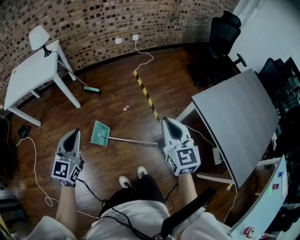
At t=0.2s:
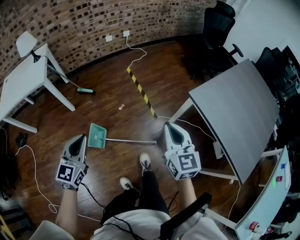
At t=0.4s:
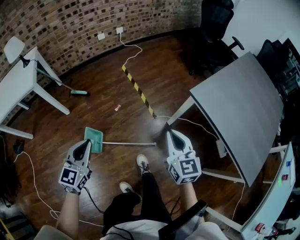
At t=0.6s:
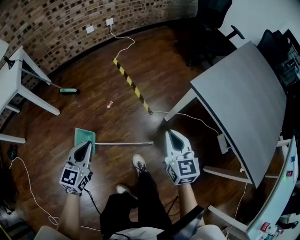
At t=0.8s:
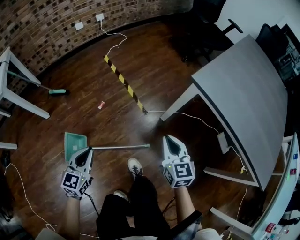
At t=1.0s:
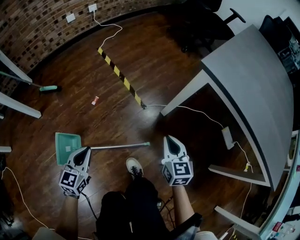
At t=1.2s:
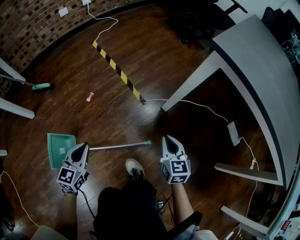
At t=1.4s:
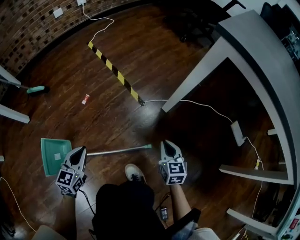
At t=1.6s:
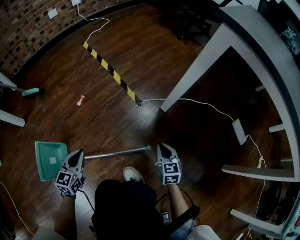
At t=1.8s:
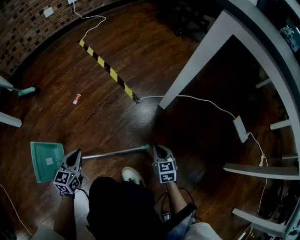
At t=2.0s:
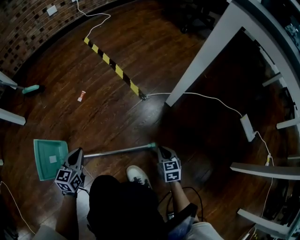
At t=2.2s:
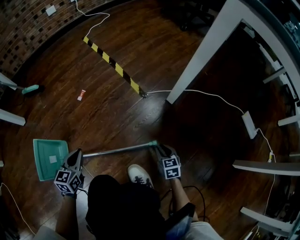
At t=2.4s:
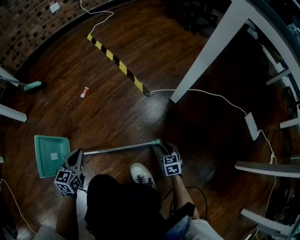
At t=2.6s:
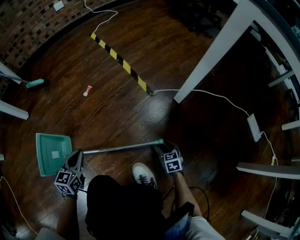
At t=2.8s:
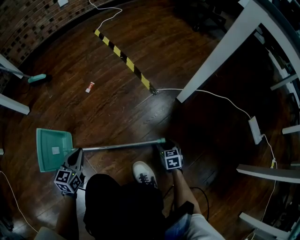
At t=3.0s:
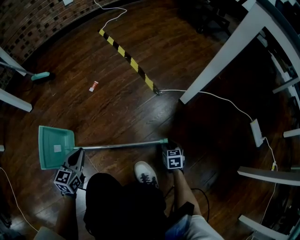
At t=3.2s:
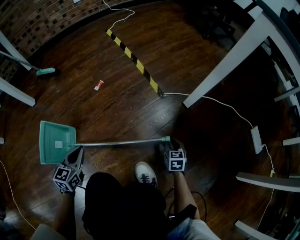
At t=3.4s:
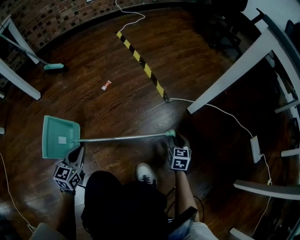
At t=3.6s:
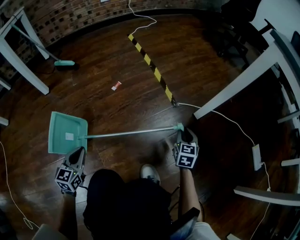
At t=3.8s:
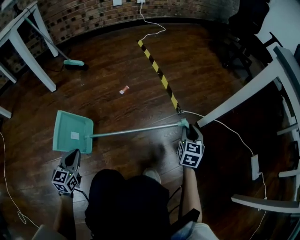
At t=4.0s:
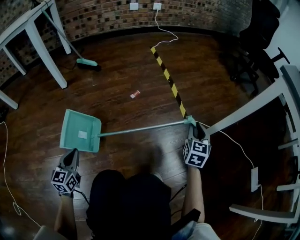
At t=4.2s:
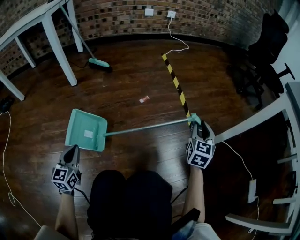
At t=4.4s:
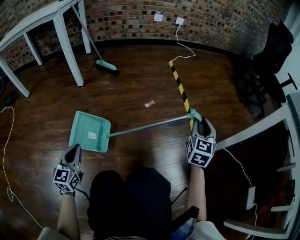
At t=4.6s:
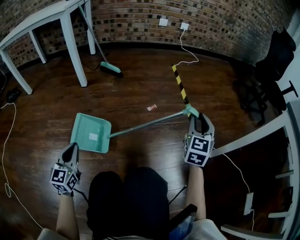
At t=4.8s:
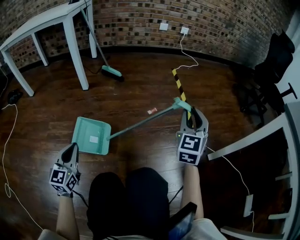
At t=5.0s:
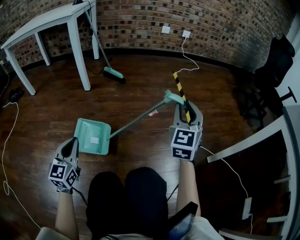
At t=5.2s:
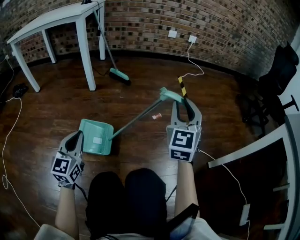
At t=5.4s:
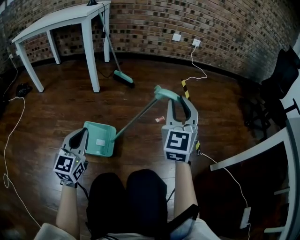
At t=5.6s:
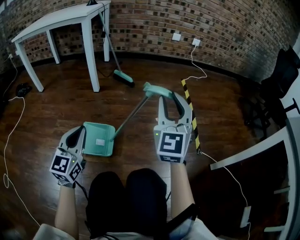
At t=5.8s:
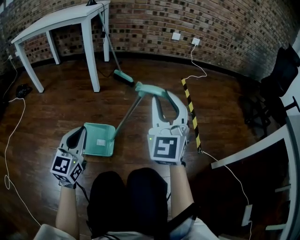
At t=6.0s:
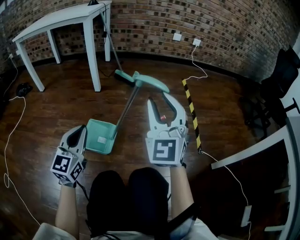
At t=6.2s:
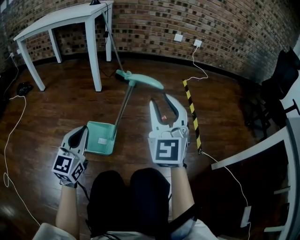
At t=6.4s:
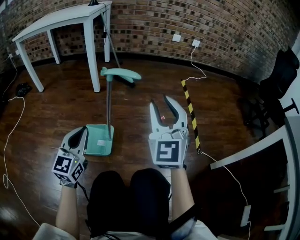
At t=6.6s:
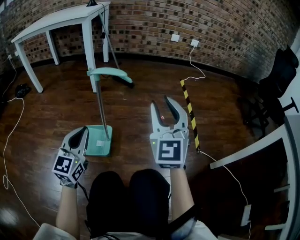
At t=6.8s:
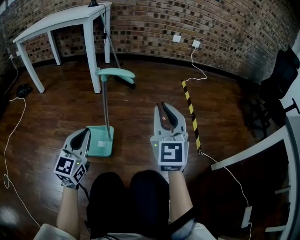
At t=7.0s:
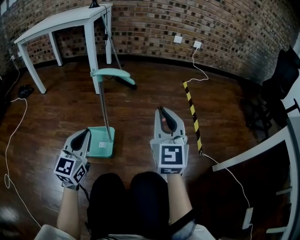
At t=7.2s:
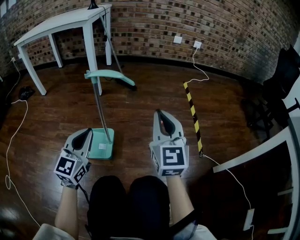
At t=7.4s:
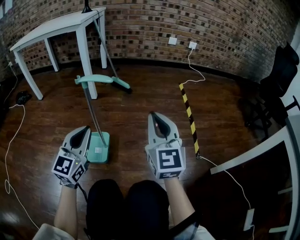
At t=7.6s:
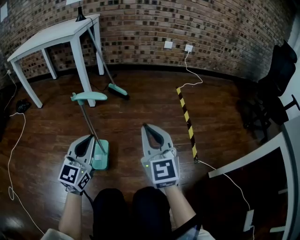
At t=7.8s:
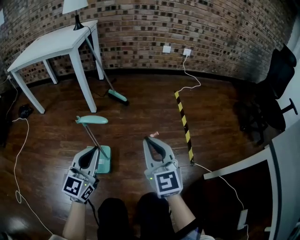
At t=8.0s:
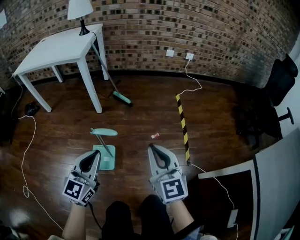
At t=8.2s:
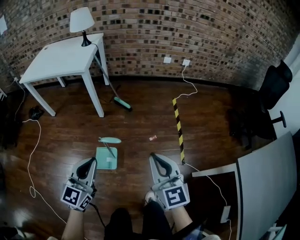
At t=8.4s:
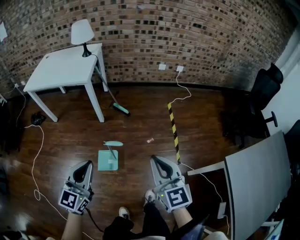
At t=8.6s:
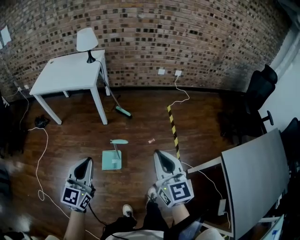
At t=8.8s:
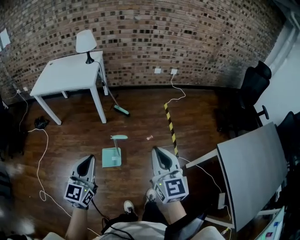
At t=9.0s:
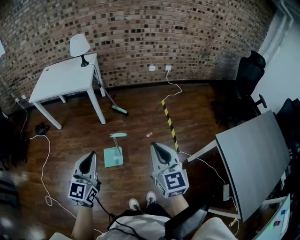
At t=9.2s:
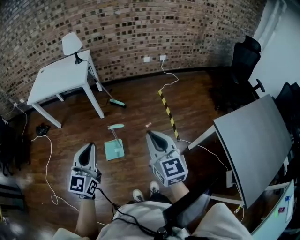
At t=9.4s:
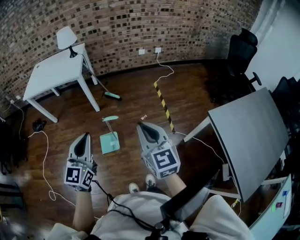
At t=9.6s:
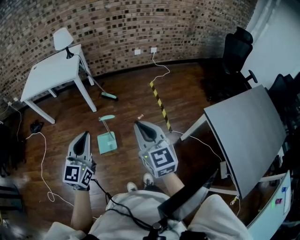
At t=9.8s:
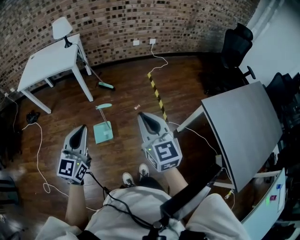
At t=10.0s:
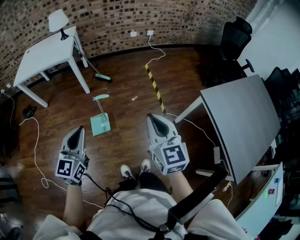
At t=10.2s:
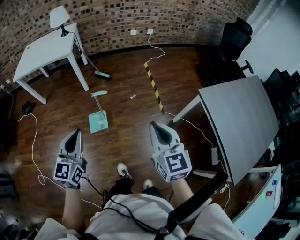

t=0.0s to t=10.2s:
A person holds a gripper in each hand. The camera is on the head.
t=0.0s to t=1.4s: Both grippers travel together downward, some 70 cm. The left gripper changes its angle by about 30 degrees; the right gripper changes its angle by about 40 degrees.
t=1.4s to t=3.0s: The left gripper heads downward, to the left and backward, covering some 15 cm; the right gripper heads downward, covering about 30 cm, turns by some 20 degrees, and opens, then closes once more.
t=3.0s to t=4.4s: The right gripper goes some 50 cm upward, forward and to the left, and tips its fingers upward by about 40 degrees. Meanwhile the left gripper goes some 25 cm to the left, backward and upward, and rotates roughly 40 degrees.
t=4.4s to t=5.8s: The left gripper travels upward by approximately 15 cm. The right gripper travels to the left and upward by approximately 35 cm, and rotates about 40 degrees.
t=5.8s to t=7.2s: The right gripper goes approximately 5 cm downward, swivels some 20 degrees, and closes its fingers.
t=7.2s to t=8.8s: Both grippers travel together upward, roughly 50 cm.
t=8.8s to t=10.2s: The left gripper travels backward by some 10 cm. The right gripper goes some 20 cm backward and to the right.

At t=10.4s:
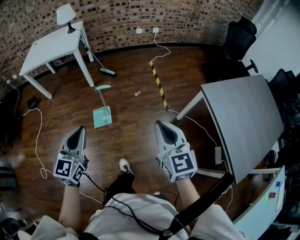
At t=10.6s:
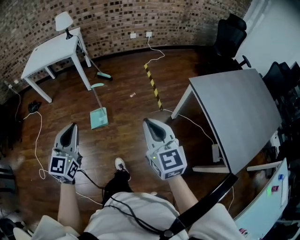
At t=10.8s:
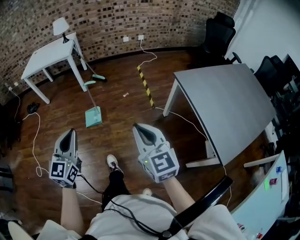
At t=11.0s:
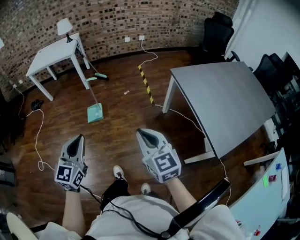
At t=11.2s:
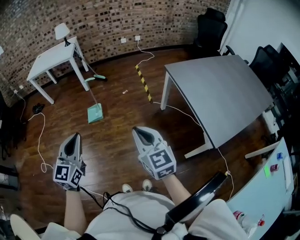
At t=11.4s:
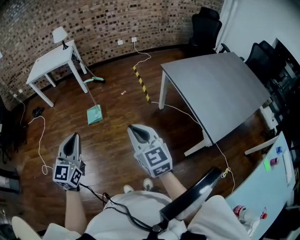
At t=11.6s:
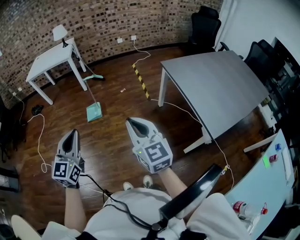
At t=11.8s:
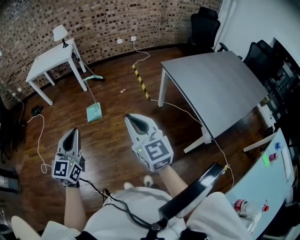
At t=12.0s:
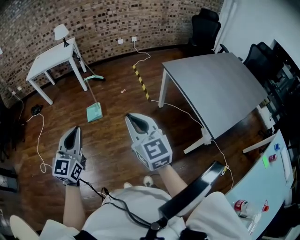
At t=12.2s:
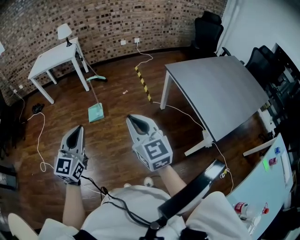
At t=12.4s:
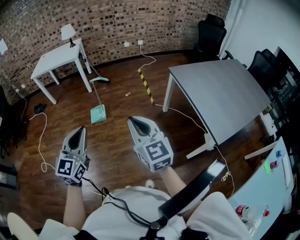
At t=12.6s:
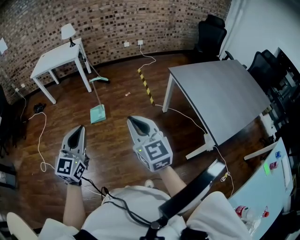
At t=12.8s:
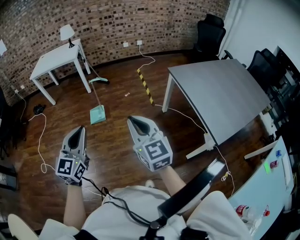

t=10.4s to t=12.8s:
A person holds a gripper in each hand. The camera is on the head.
t=10.4s to t=11.6s: The two grippers go some 35 cm backward.
t=11.6s to t=12.8s: The right gripper shifts by some 5 cm.

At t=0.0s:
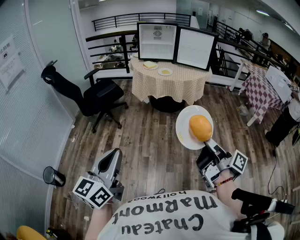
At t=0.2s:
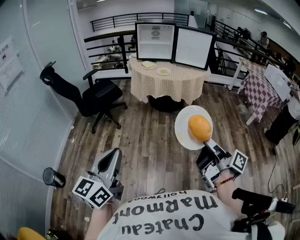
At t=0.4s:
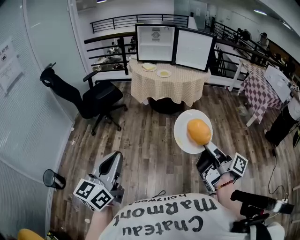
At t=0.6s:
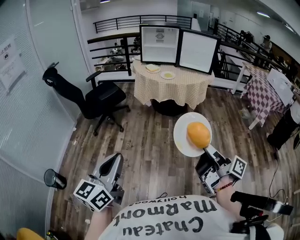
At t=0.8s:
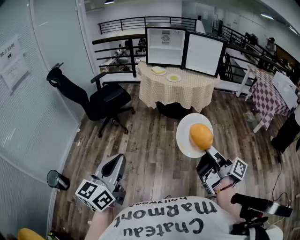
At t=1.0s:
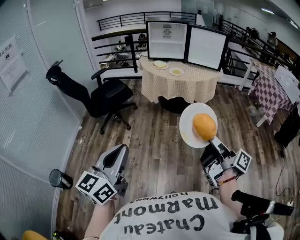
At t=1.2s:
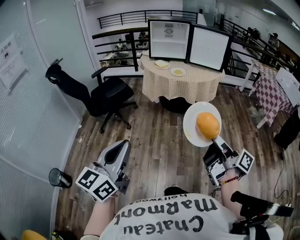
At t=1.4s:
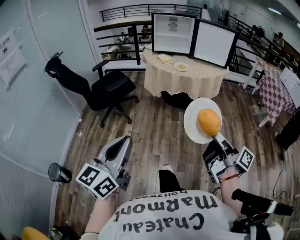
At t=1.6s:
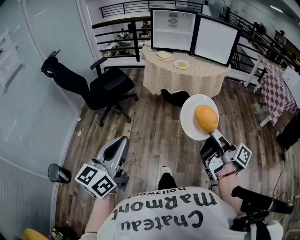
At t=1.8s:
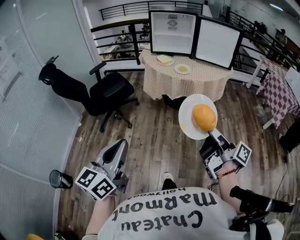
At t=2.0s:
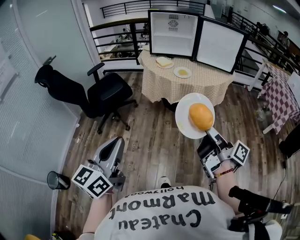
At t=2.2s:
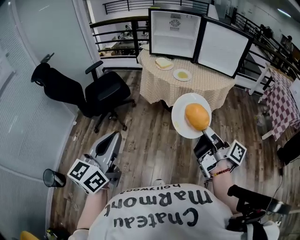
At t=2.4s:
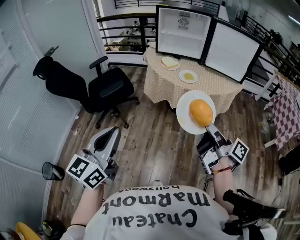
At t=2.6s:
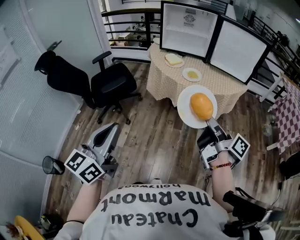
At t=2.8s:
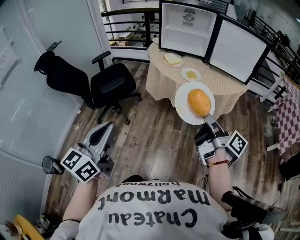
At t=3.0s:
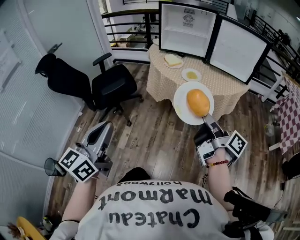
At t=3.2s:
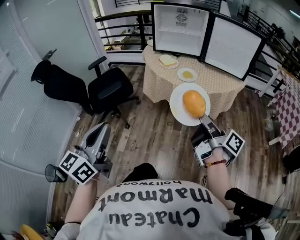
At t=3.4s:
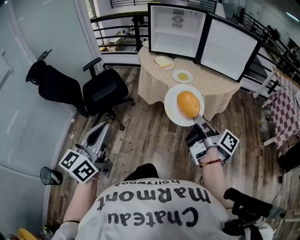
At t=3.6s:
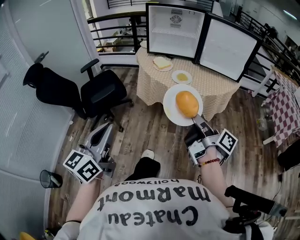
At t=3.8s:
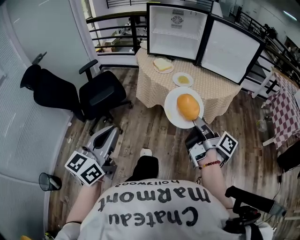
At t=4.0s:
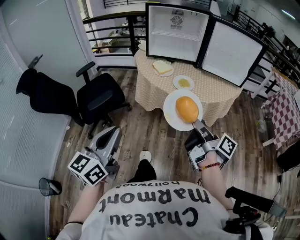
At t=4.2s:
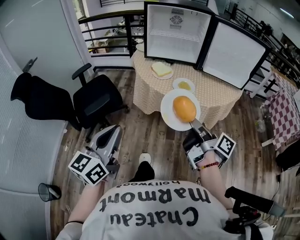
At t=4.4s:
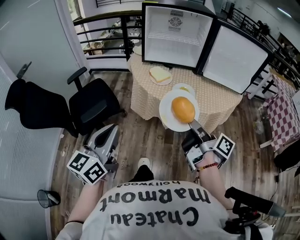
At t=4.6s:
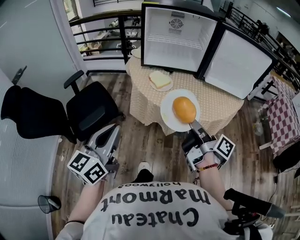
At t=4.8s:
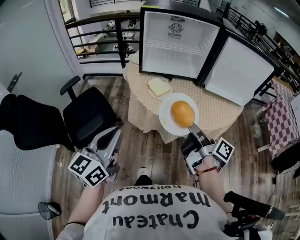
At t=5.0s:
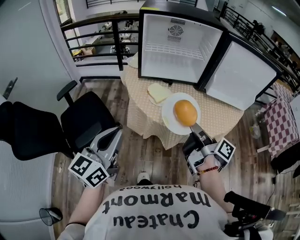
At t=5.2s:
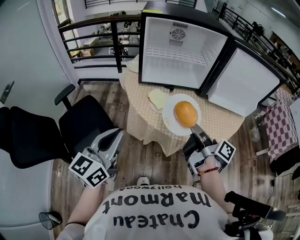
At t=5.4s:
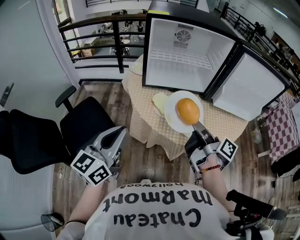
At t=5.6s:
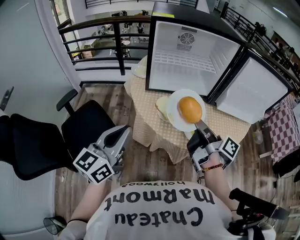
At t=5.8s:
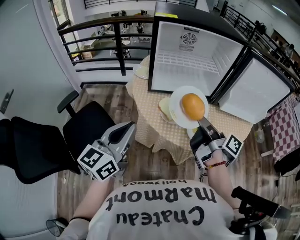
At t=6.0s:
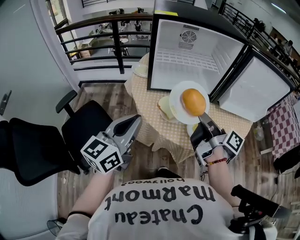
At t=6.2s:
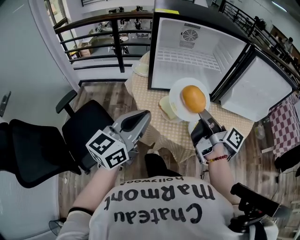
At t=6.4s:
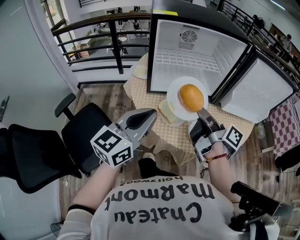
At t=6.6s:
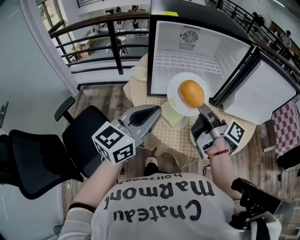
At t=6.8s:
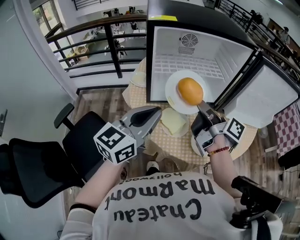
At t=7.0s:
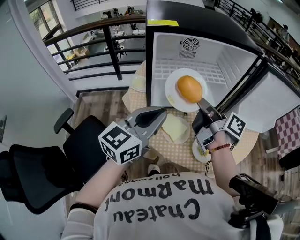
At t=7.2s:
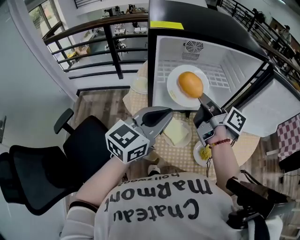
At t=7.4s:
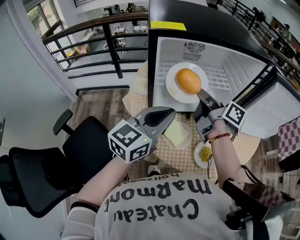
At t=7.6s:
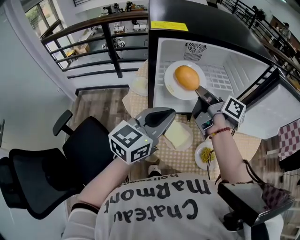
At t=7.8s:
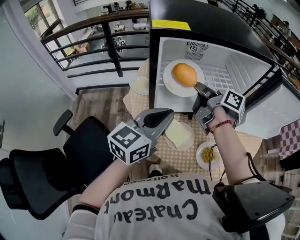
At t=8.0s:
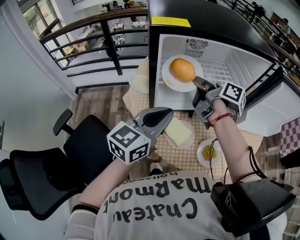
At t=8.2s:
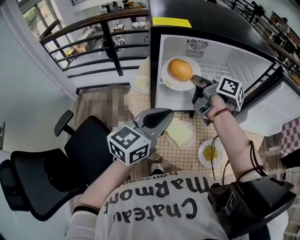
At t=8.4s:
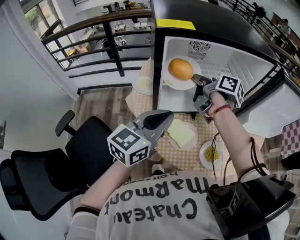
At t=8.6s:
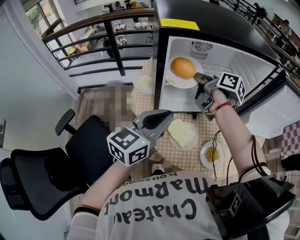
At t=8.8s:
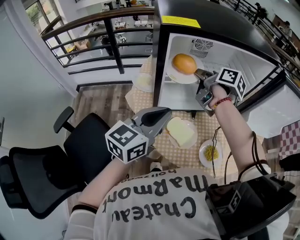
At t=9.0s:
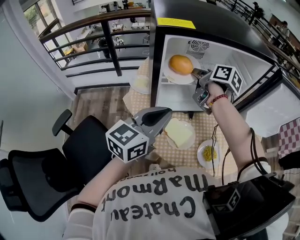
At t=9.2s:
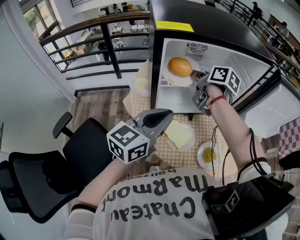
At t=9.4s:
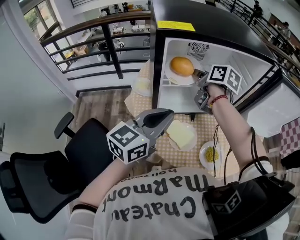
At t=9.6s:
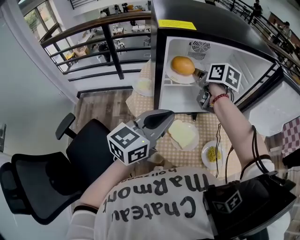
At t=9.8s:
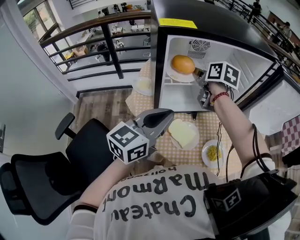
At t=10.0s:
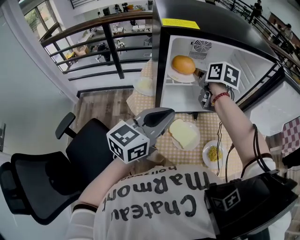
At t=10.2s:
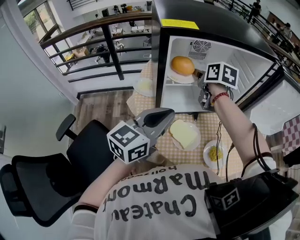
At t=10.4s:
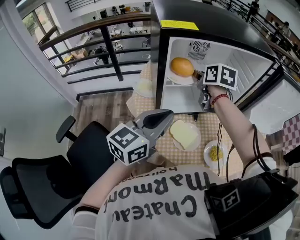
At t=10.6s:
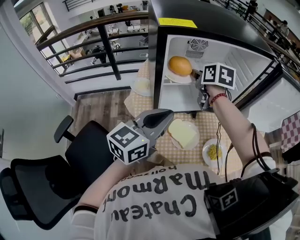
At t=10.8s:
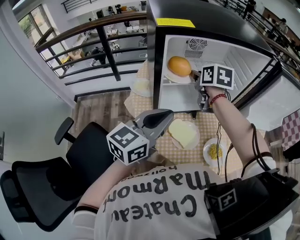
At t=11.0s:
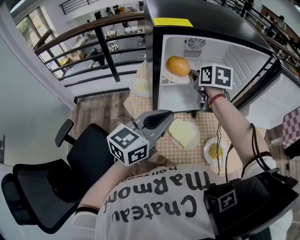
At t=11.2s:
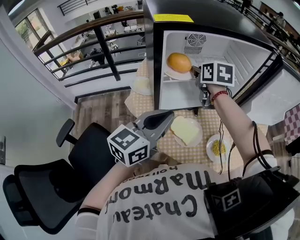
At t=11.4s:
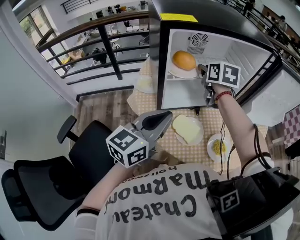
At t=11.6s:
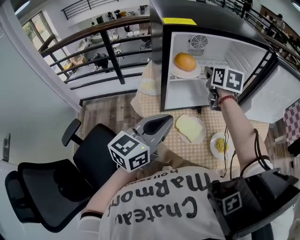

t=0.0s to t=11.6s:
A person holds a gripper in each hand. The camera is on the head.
t=0.0s to t=1.4s: The left gripper is displaced forward by about 10 cm. Meanwhile the right gripper goes approximately 10 cm forward and to the left.
t=1.4s to t=2.8s: The grippers both shift forward by roughly 30 cm.
t=2.8s to t=4.4s: The grippers both shift forward by approximately 20 cm.
t=4.4s to t=5.8s: The grippers both shift forward by roughly 30 cm.
t=5.8s to t=7.2s: The two grippers go roughly 20 cm forward. The left gripper rotates approximately 20 degrees.
t=7.2s to t=8.8s: The left gripper ends up some 5 cm from where it was. Meanwhile the right gripper heads forward and to the left, covering approximately 15 cm, and rotates approximately 20 degrees.
t=8.8s to t=10.2s: The right gripper swivels about 30 degrees, and opens its fingers.
t=10.2s to t=11.6s: The left gripper shifts some 5 cm backward. Meanwhile the right gripper shifts by about 5 cm.
